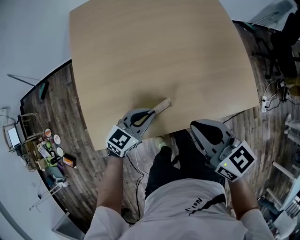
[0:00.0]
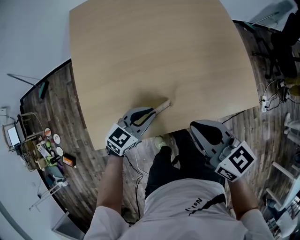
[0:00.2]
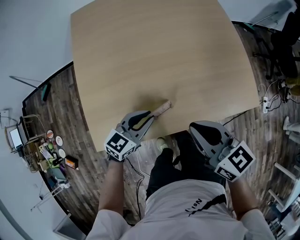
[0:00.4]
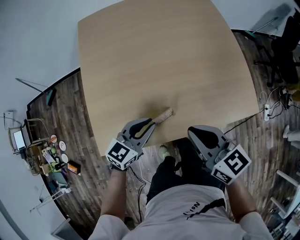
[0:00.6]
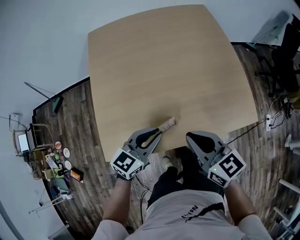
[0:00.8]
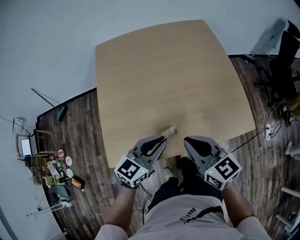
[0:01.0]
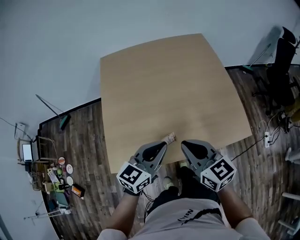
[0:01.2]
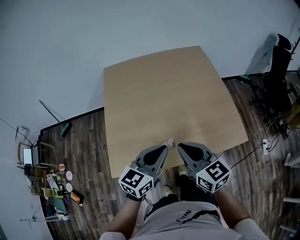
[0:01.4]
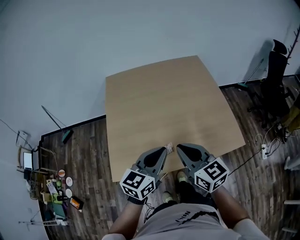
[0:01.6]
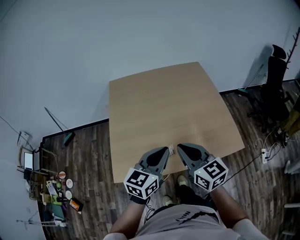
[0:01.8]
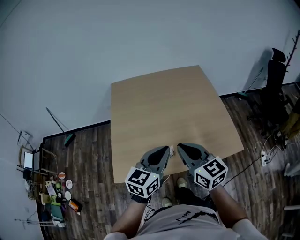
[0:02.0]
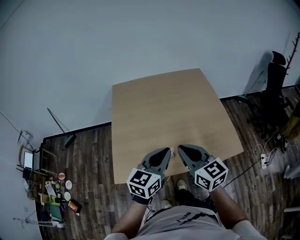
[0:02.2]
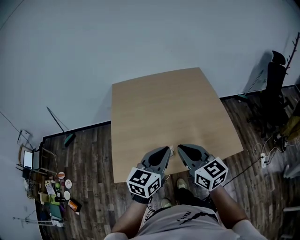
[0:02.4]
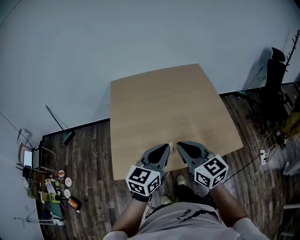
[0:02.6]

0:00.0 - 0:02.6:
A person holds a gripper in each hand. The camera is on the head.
0:00.0 - 0:01.2: The right gripper goes about 5 cm upward. Meanwhile the left gripper is displaced upward by approximately 20 cm.
0:01.2 - 0:02.6: The grippers both shift upward by approximately 10 cm.

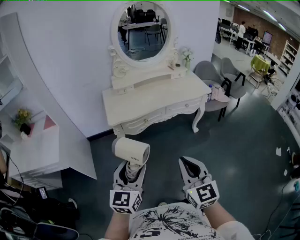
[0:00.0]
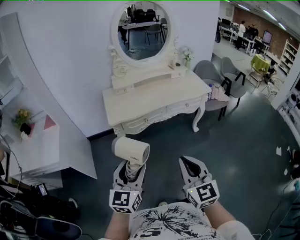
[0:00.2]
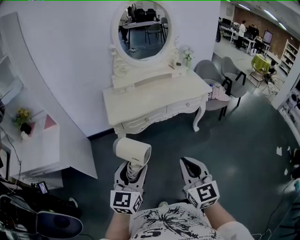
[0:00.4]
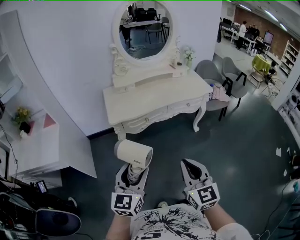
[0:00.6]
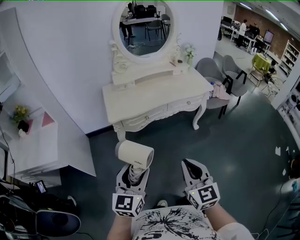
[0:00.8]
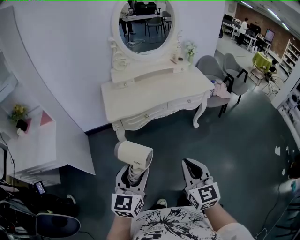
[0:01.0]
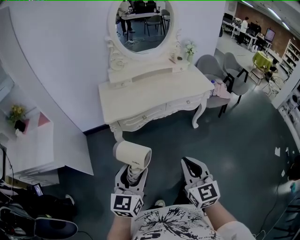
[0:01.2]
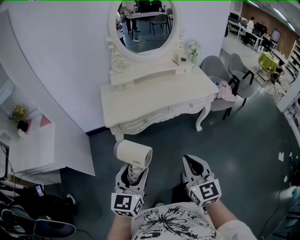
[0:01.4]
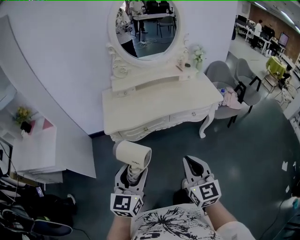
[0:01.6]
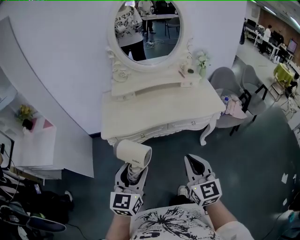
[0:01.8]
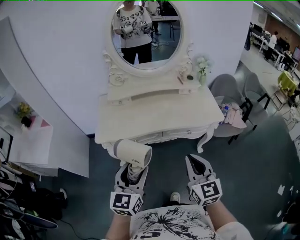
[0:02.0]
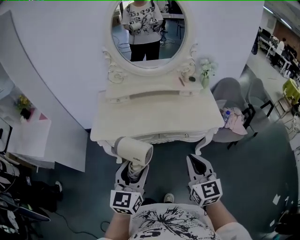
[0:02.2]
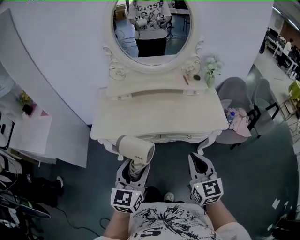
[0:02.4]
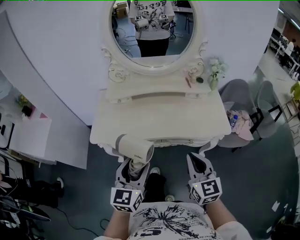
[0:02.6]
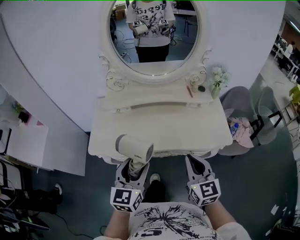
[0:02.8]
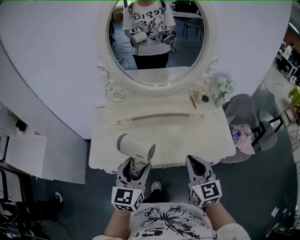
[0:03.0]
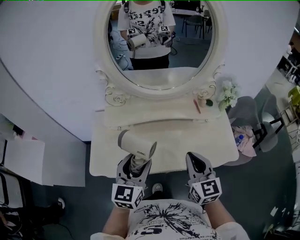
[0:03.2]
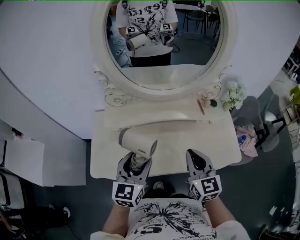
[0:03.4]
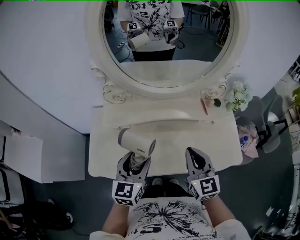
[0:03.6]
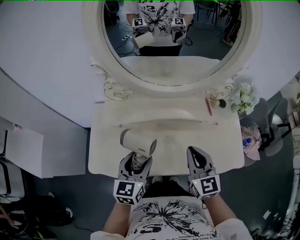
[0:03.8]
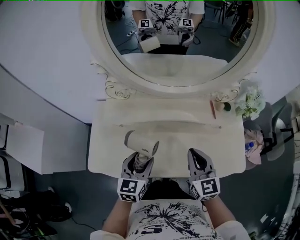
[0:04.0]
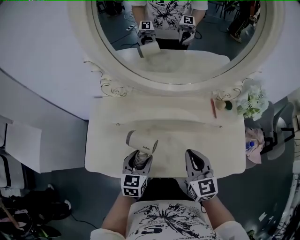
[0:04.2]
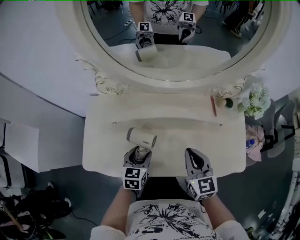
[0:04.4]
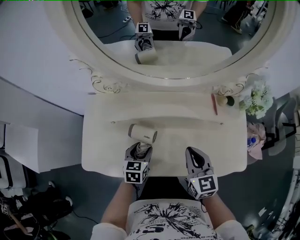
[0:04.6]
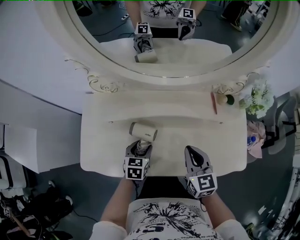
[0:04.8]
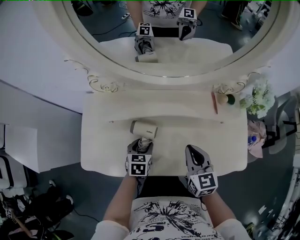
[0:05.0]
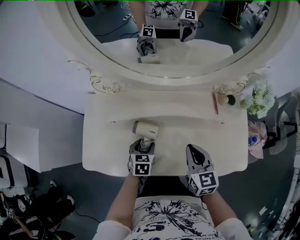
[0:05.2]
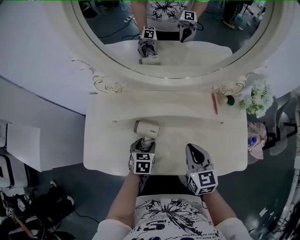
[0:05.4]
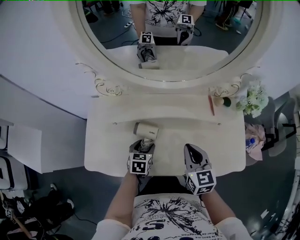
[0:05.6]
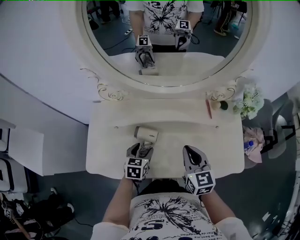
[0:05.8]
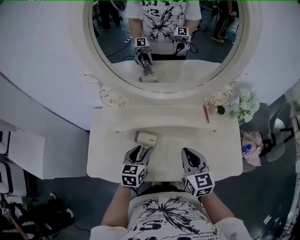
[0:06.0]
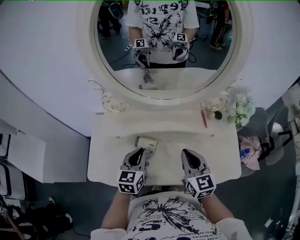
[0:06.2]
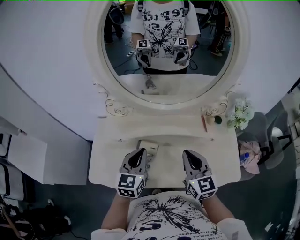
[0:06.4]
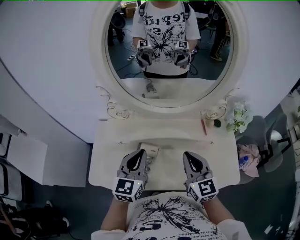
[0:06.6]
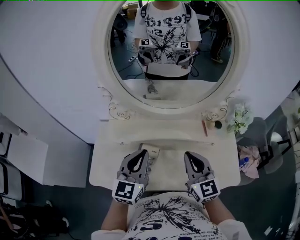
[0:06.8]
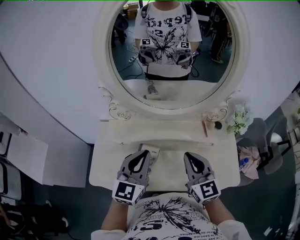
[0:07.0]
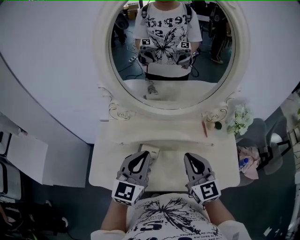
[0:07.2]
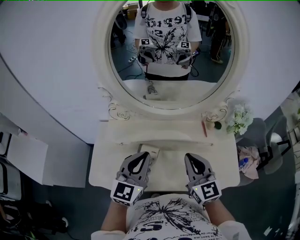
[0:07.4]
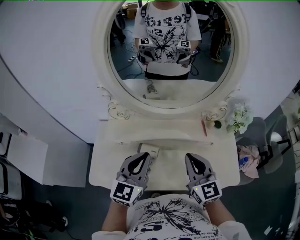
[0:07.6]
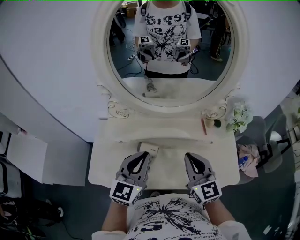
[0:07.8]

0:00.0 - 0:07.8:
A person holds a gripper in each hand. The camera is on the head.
0:00.0 - 0:01.6: The two grippers go approximately 15 cm forward and to the right.
0:01.6 - 0:03.2: The two grippers travel together, forward, approximately 40 cm.
0:03.2 - 0:04.6: The left gripper heads downward and forward, covering roughly 30 cm, and tilts its fingers about 30 degrees downward. The right gripper travels forward and downward by about 20 cm.
0:04.6 - 0:06.2: The right gripper heads upward, covering roughly 10 cm. The left gripper travels upward by approximately 15 cm, and closes.
0:06.2 - 0:07.8: The right gripper shifts about 5 cm upward; the left gripper heads upward, covering about 15 cm, and changes its angle by some 20 degrees.

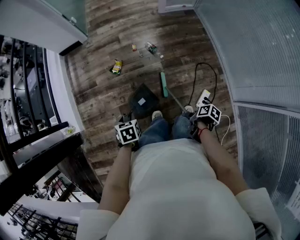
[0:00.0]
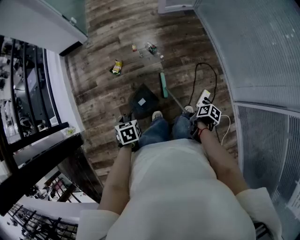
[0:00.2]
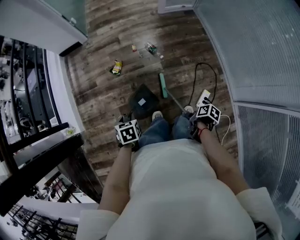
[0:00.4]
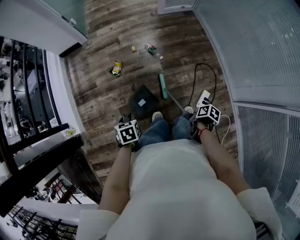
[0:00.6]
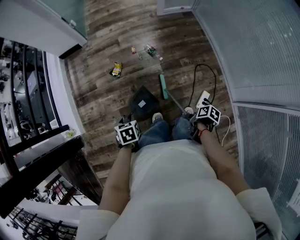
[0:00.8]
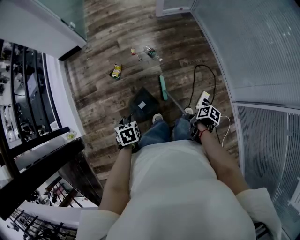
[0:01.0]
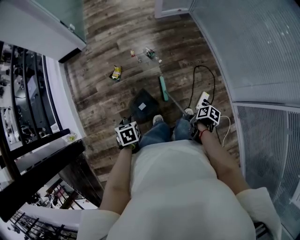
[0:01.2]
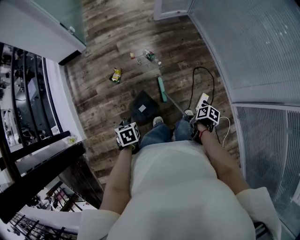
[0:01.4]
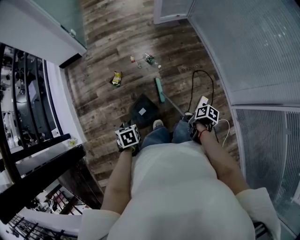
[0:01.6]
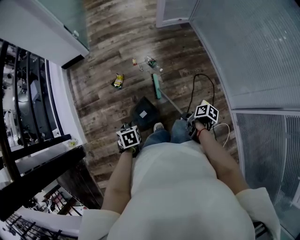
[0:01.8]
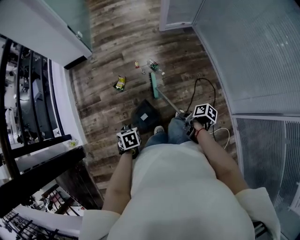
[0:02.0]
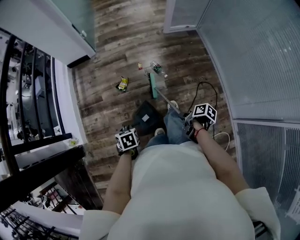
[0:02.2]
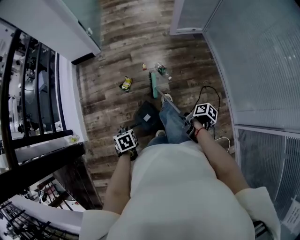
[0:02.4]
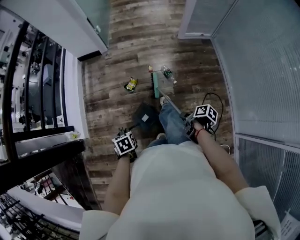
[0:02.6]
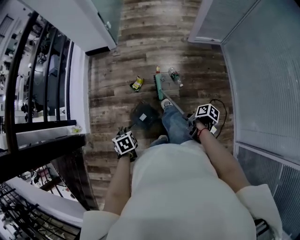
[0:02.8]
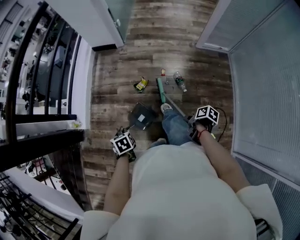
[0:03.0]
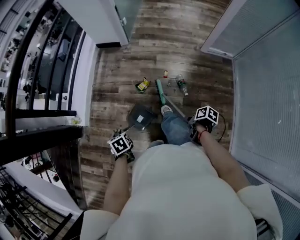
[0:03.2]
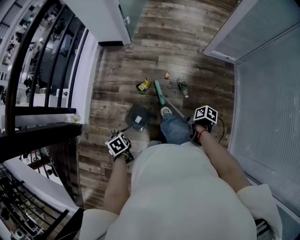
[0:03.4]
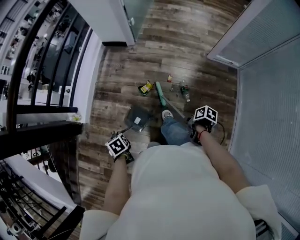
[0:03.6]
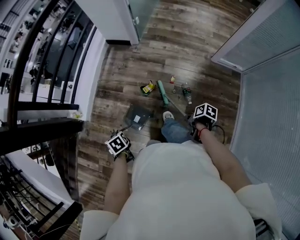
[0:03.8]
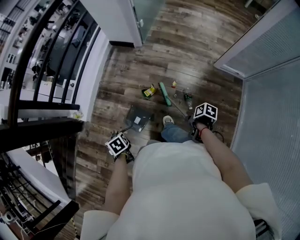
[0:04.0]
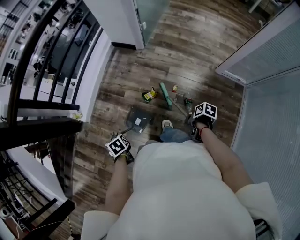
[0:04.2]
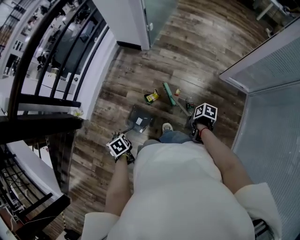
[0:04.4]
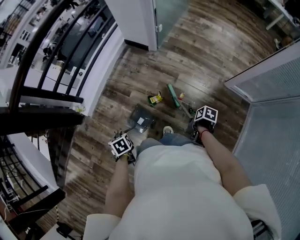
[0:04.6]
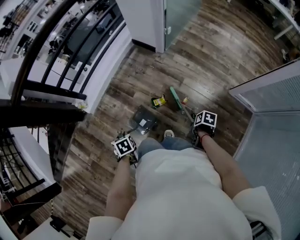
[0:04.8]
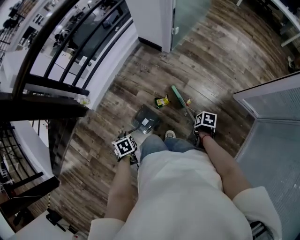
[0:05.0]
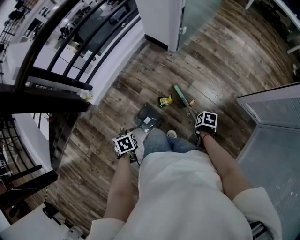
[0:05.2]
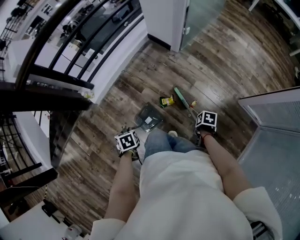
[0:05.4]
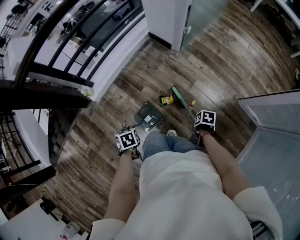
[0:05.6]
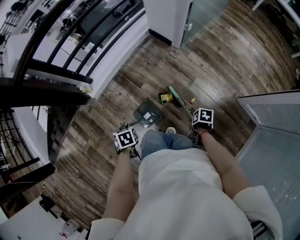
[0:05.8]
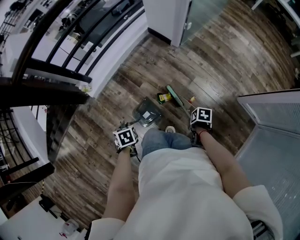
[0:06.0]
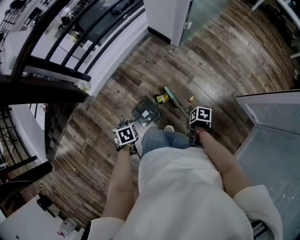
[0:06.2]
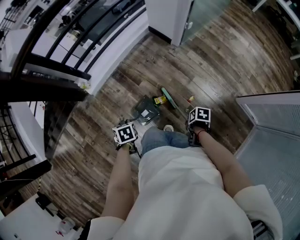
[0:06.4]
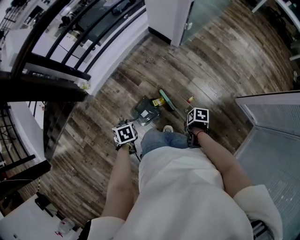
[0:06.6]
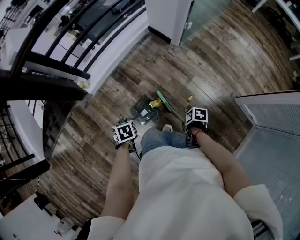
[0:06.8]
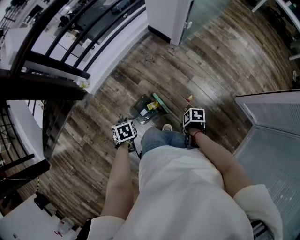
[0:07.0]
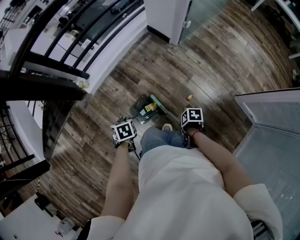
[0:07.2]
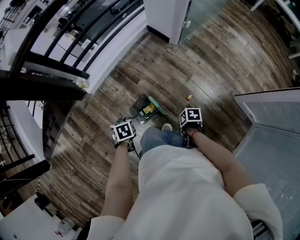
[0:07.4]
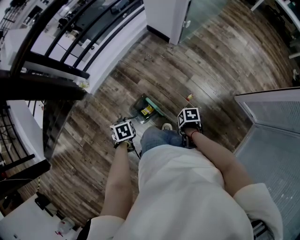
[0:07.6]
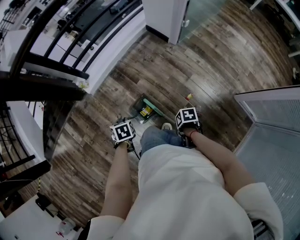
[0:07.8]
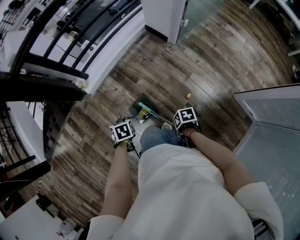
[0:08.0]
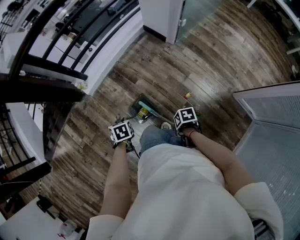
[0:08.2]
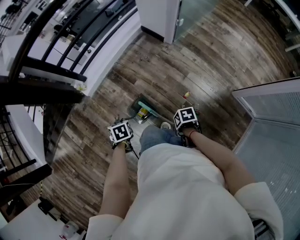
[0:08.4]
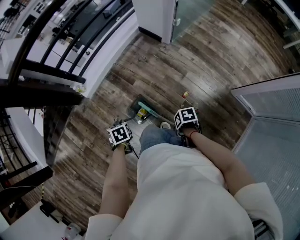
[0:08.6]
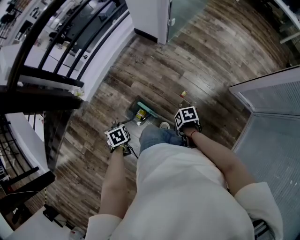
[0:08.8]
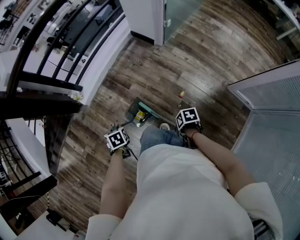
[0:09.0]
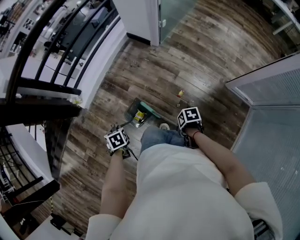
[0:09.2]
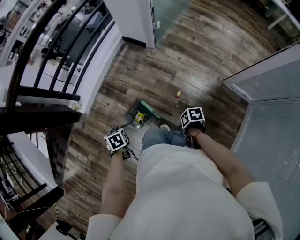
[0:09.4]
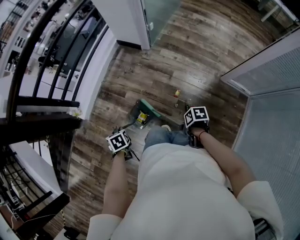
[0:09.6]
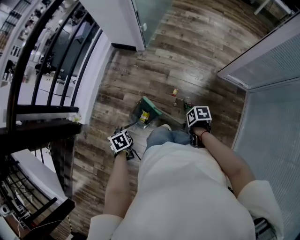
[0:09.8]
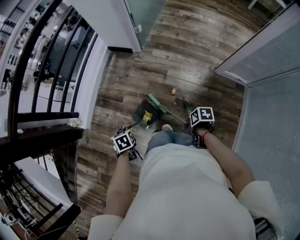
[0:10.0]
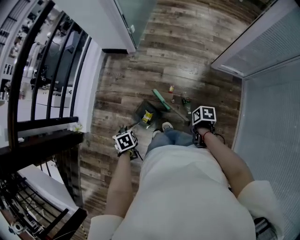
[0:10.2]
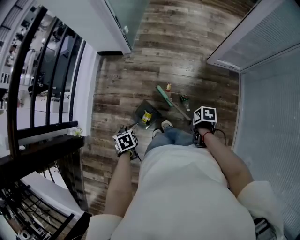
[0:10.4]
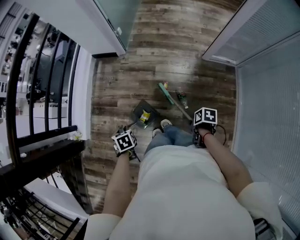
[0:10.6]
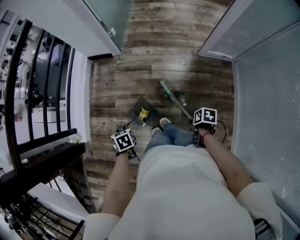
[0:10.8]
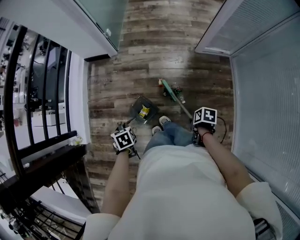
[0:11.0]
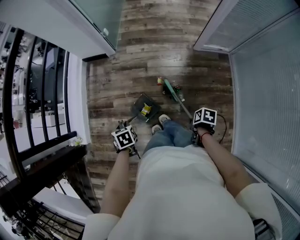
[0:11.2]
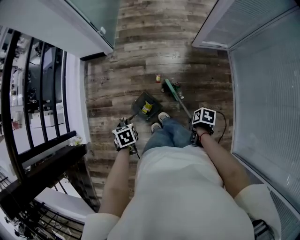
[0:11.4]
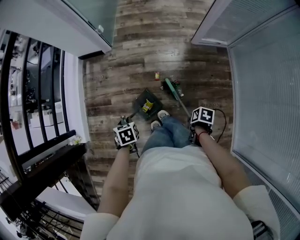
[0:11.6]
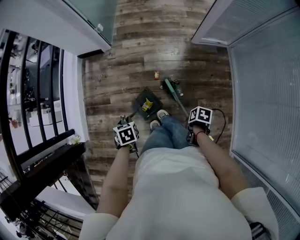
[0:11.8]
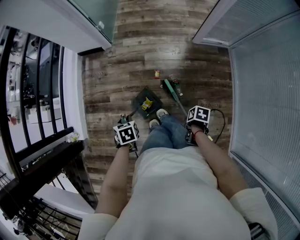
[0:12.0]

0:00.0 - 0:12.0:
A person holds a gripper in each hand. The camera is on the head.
0:01.6 - 0:03.0: The left gripper shifts by about 10 cm, and turns by about 30 degrees.
0:03.0 - 0:04.4: The left gripper shifts by some 10 cm, and changes its angle by approximately 30 degrees.
0:09.0 - 0:10.4: The left gripper ends up some 10 cm from where it was, and changes its angle by roughly 30 degrees.
0:10.4 - 0:12.0: The left gripper ends up roughly 10 cm from where it was.

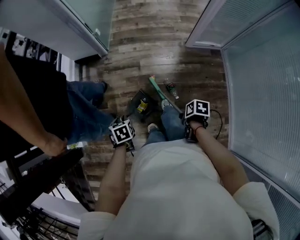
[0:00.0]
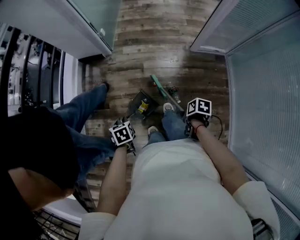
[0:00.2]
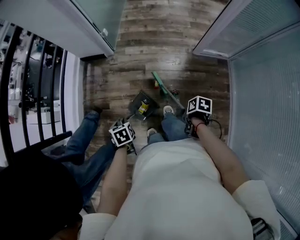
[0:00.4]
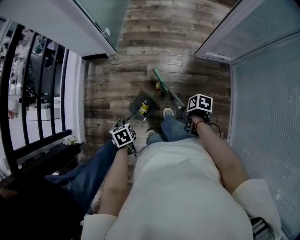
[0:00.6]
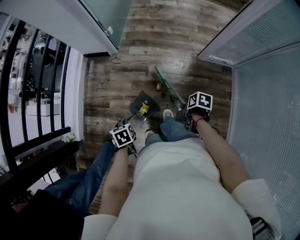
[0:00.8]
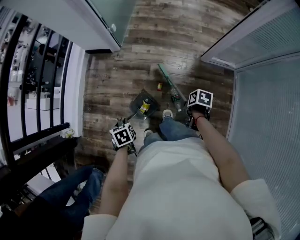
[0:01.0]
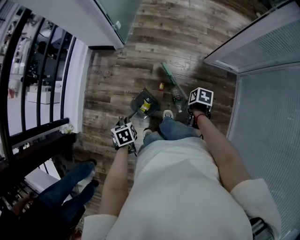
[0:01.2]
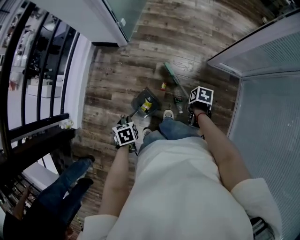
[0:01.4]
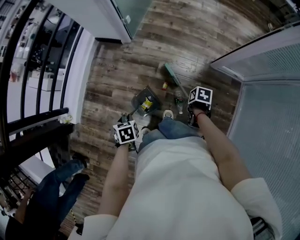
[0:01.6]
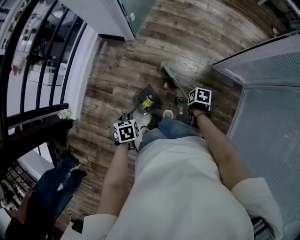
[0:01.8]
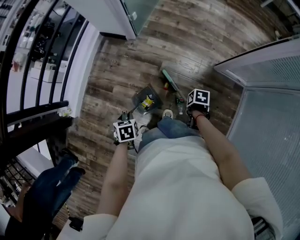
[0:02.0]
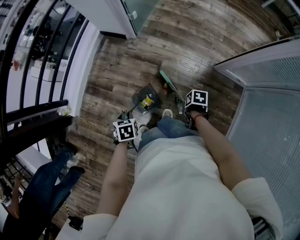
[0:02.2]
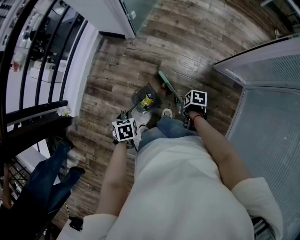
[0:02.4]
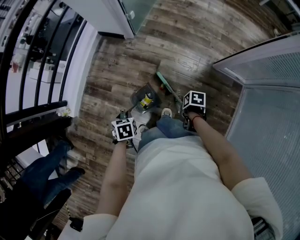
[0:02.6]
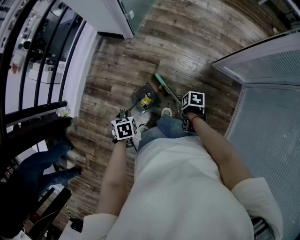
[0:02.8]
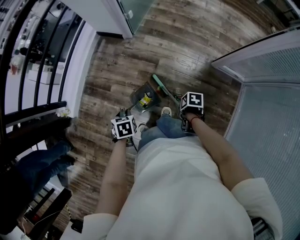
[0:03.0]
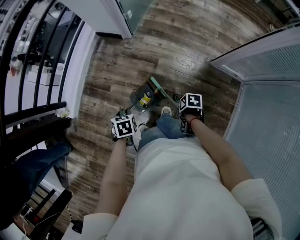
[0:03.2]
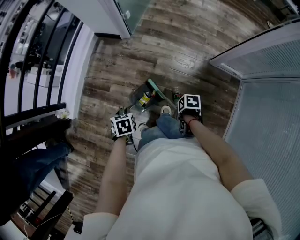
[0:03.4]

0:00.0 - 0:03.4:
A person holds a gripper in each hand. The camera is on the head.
0:00.0 - 0:01.6: The left gripper moves approximately 10 cm.
